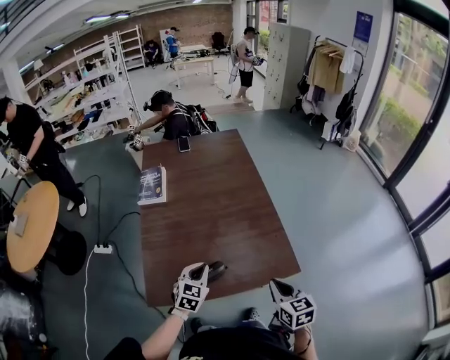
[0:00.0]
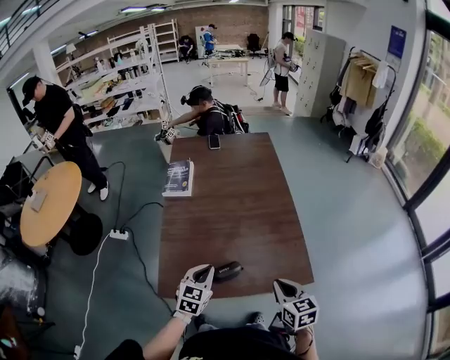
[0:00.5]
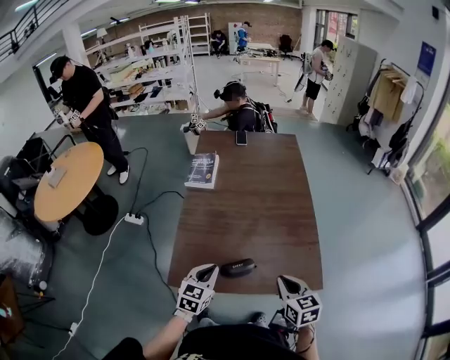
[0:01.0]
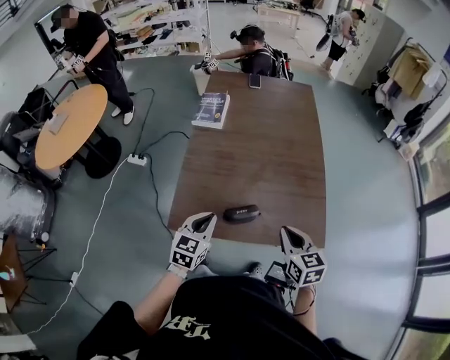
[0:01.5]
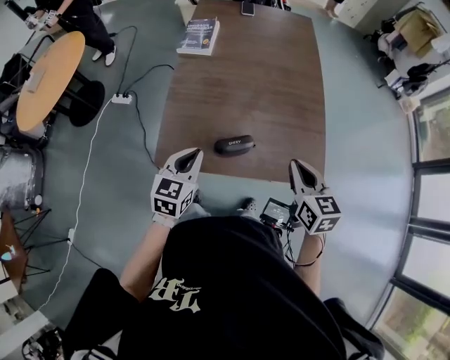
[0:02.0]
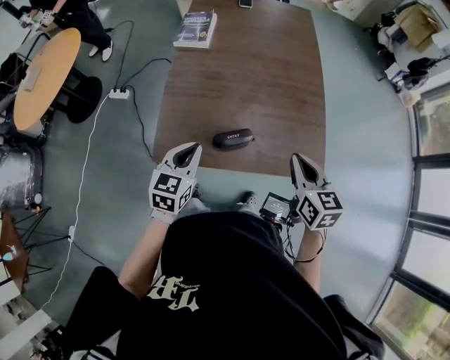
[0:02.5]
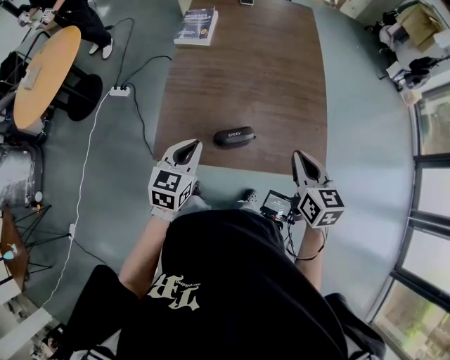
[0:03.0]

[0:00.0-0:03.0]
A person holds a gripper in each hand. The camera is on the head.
0:00.0 to 0:01.5: The right gripper is displaced to the left by approximately 10 cm. Meanwhile the left gripper moves to the left and backward, some 10 cm.
0:01.5 to 0:03.0: The grippers make only small movements.

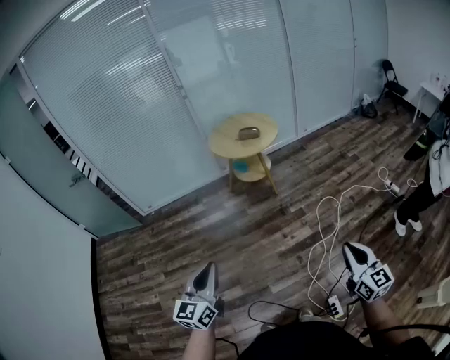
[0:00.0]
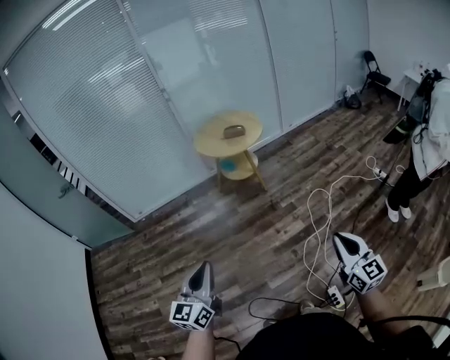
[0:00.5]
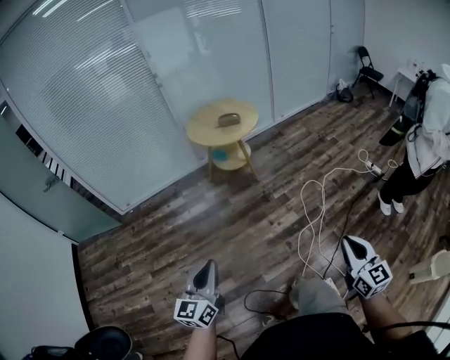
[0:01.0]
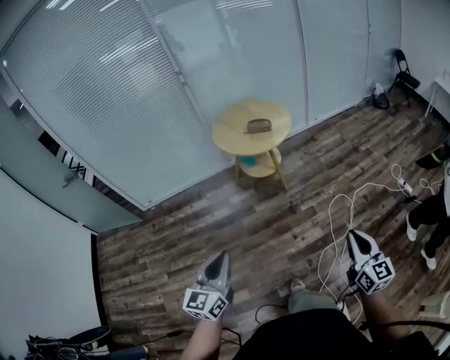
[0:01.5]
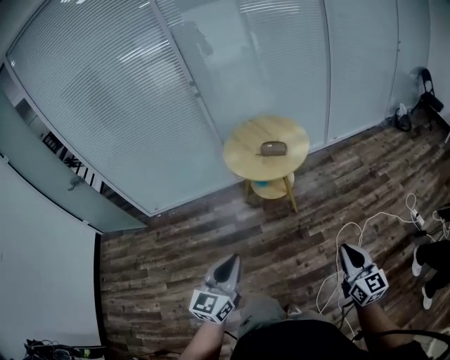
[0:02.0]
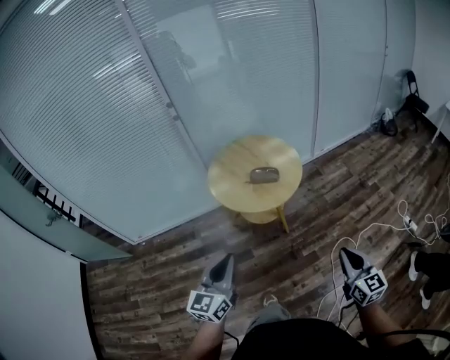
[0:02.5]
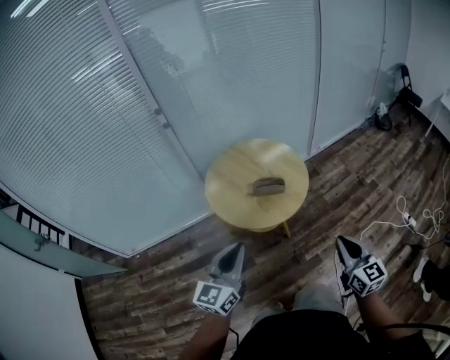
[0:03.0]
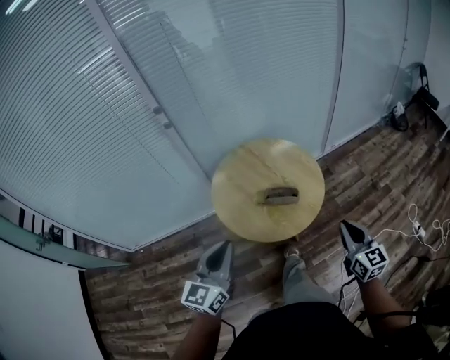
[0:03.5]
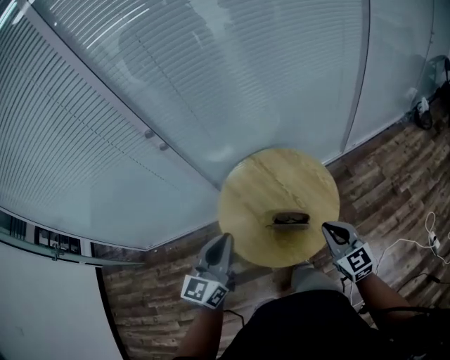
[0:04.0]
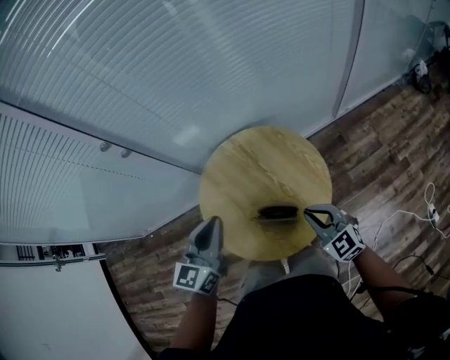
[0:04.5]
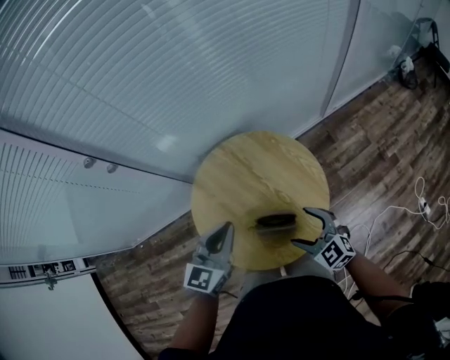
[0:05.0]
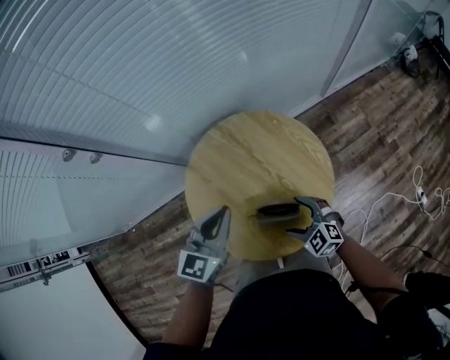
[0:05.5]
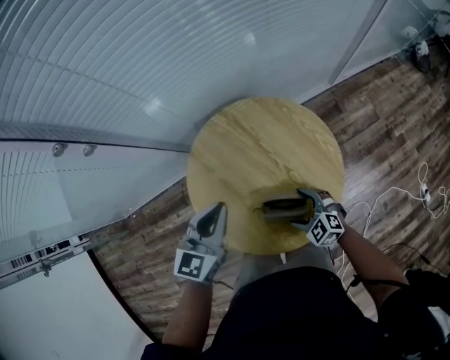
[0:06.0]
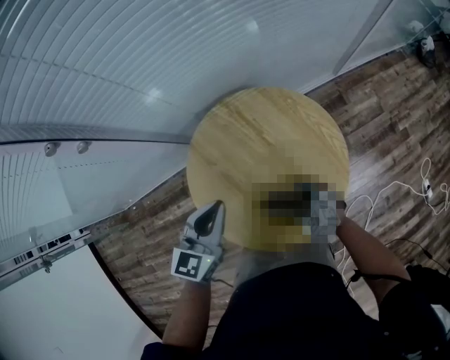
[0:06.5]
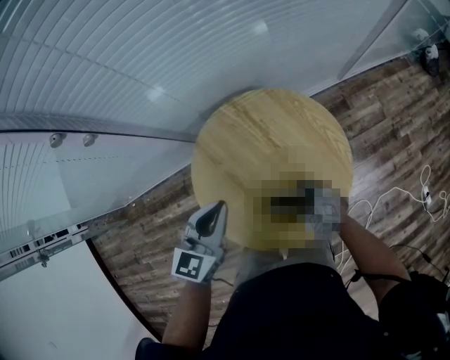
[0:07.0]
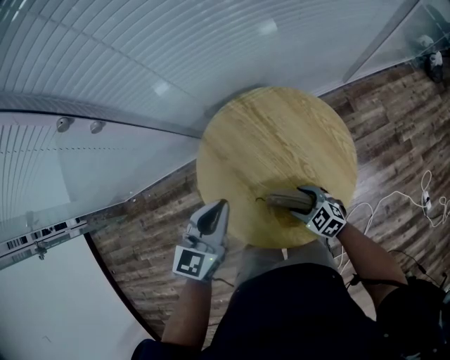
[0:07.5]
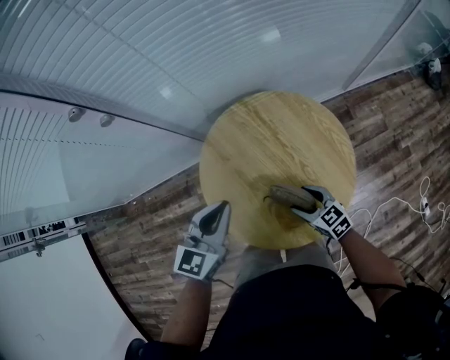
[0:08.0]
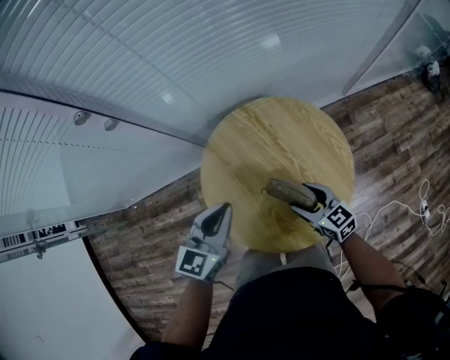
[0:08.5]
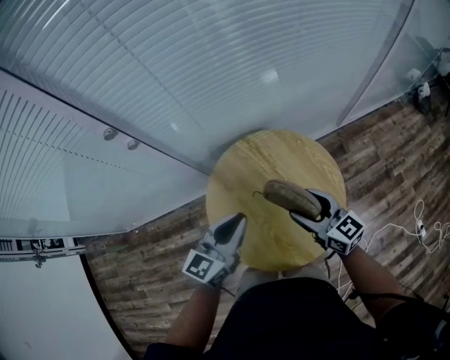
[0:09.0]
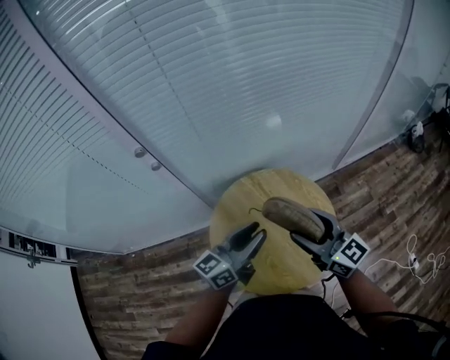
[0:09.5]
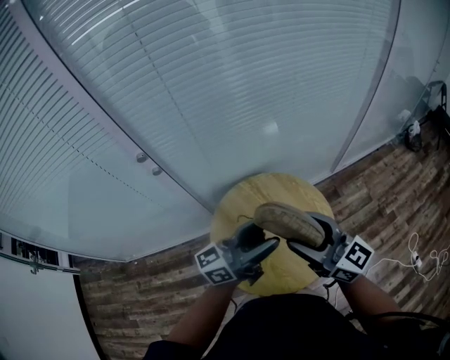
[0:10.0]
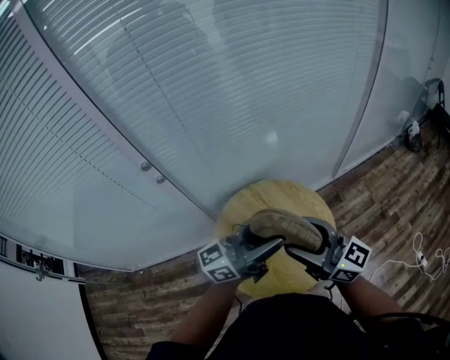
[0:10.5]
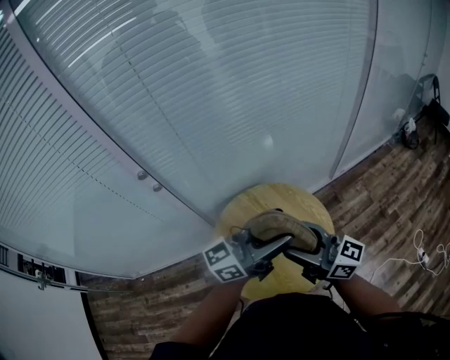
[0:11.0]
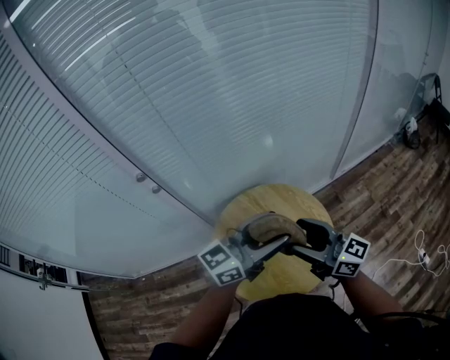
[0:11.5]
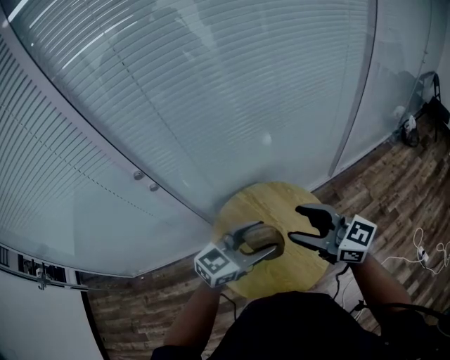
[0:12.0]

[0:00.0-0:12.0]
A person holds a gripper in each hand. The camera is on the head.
0:00.0 to 0:02.0: The two grippers go about 40 cm forward.
0:02.0 to 0:04.0: The two grippers travel together, forward, about 70 cm.
0:04.0 to 0:06.0: The right gripper heads downward, covering about 30 cm, tips its fingers downward by about 30 degrees, and opens up, while the left gripper goes about 25 cm forward and downward.
0:06.0 to 0:08.0: The left gripper shifts approximately 5 cm to the left. Meanwhile the right gripper changes its angle by some 30 degrees, and closes its fingers.
0:08.0 to 0:10.0: The left gripper goes approximately 20 cm upward and to the right, tilts its fingers some 40 degrees upward, and opens its fingers. The right gripper travels upward by some 40 cm, and tips its fingers upward by about 50 degrees.
0:10.0 to 0:12.0: The left gripper travels downward by approximately 5 cm, and angles its fingers downward, by roughly 30 degrees.

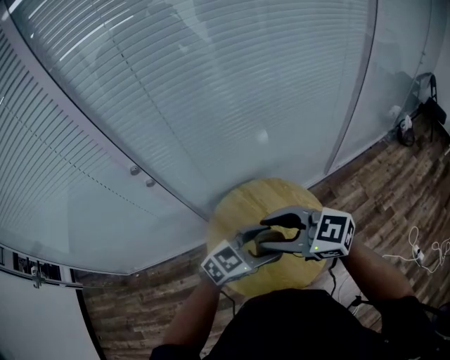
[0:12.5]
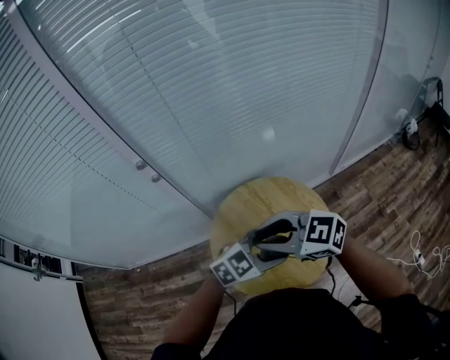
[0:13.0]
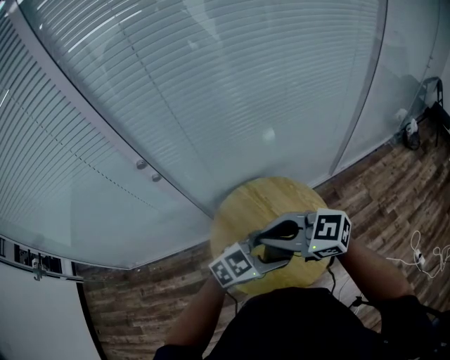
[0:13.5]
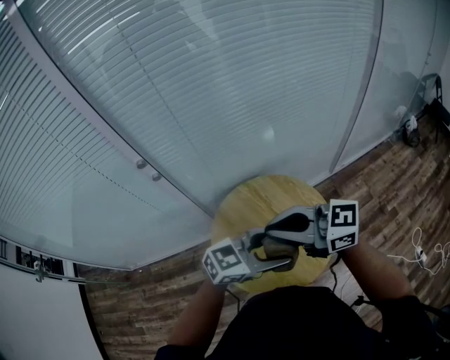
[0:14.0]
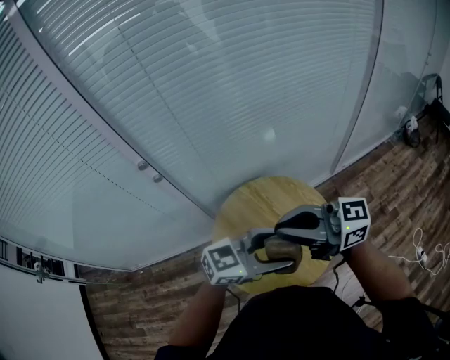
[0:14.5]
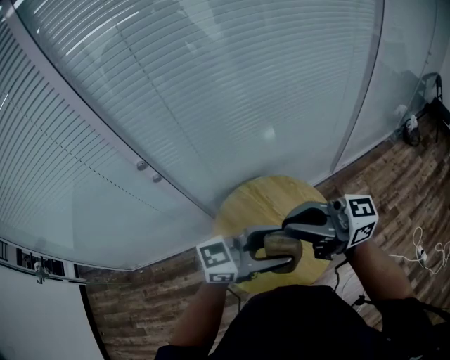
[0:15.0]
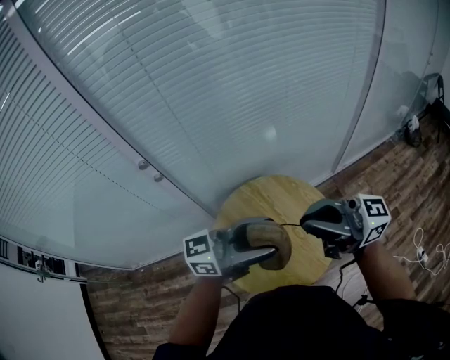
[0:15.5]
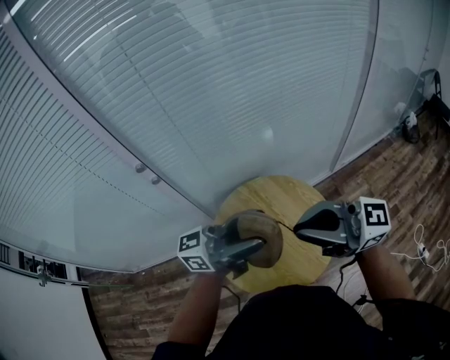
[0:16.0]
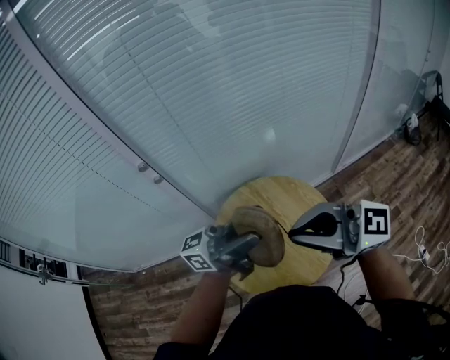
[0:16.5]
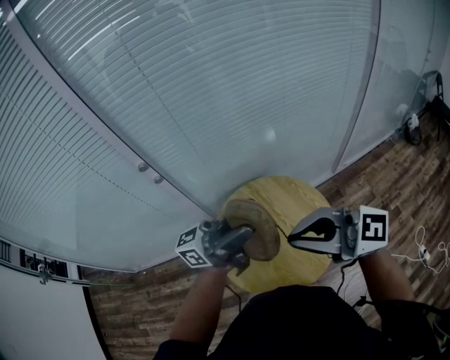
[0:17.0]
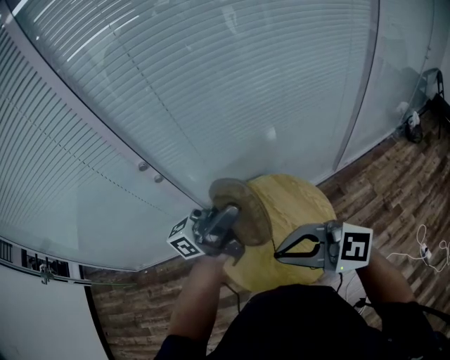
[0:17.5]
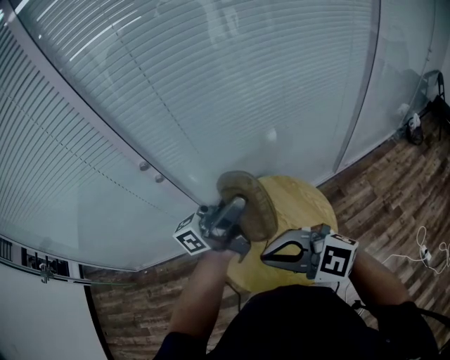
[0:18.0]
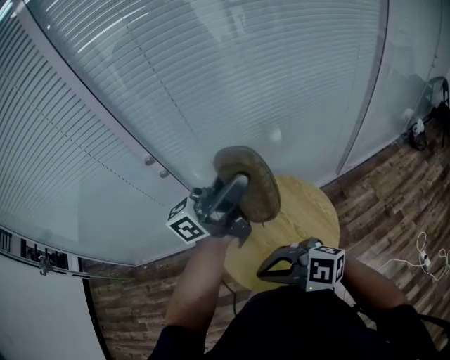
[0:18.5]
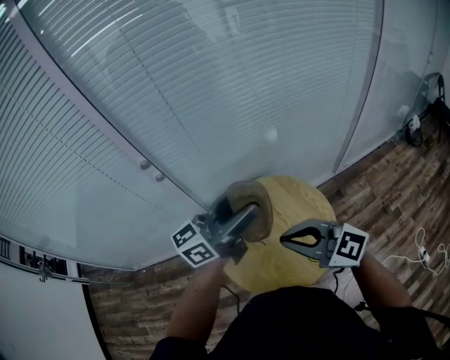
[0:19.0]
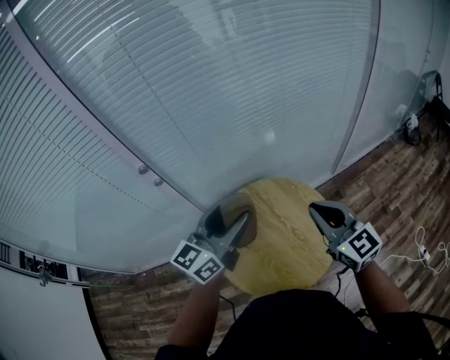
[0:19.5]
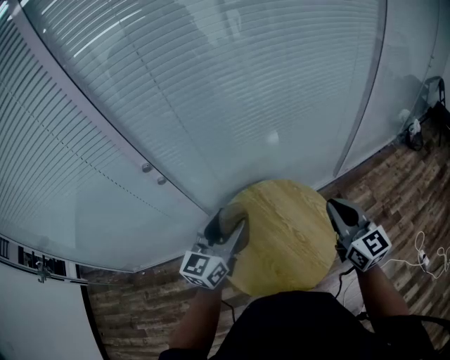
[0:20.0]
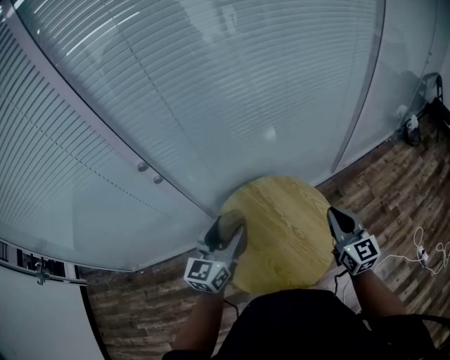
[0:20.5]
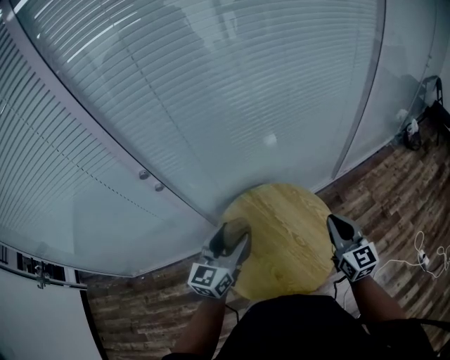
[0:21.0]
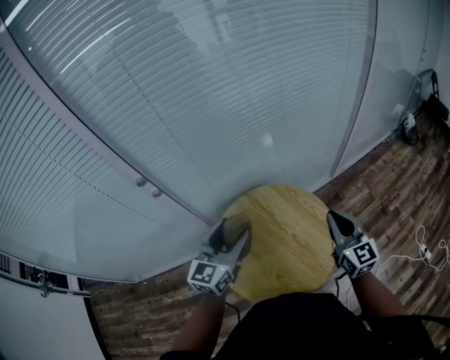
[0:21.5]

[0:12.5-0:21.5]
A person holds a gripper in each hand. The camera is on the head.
0:12.5 to 0:14.5: The right gripper moves about 5 cm, turns by roughly 30 degrees, and closes its fingers, while the left gripper is displaced upward by about 5 cm.
0:14.5 to 0:17.0: The left gripper heads upward, covering about 15 cm, and tilts its fingers about 50 degrees upward, while the right gripper ends up some 5 cm from where it was, and swivels about 20 degrees.
0:17.0 to 0:19.5: The right gripper moves approximately 15 cm, and swivels roughly 50 degrees. Meanwhile the left gripper moves downward, approximately 5 cm, and points its fingers some 30 degrees further downward.
0:19.5 to 0:21.5: The left gripper heads downward, covering about 10 cm, while the right gripper shifts some 10 cm to the right and downward, and rotates about 20 degrees.

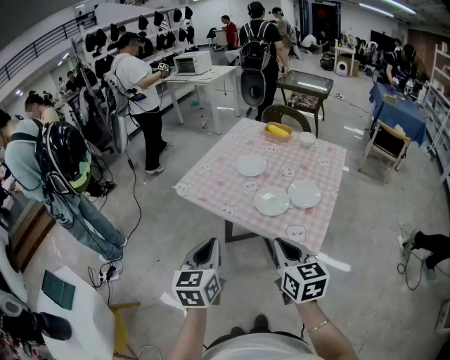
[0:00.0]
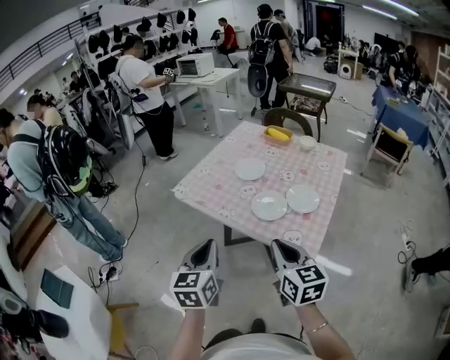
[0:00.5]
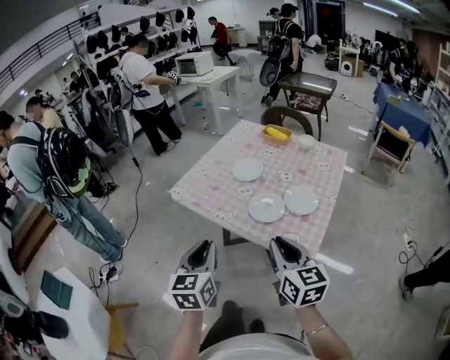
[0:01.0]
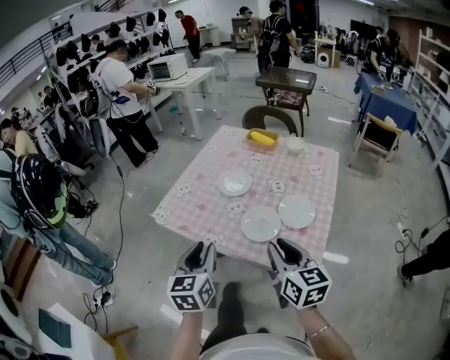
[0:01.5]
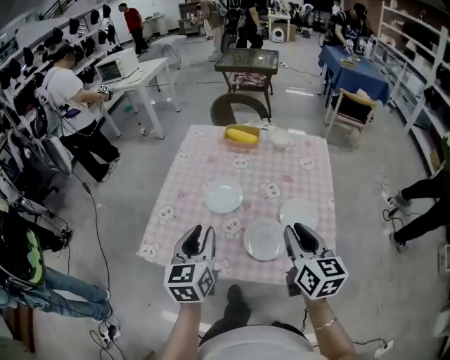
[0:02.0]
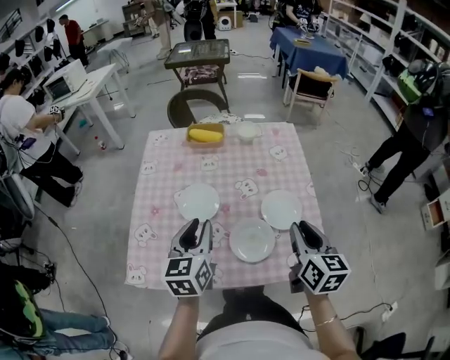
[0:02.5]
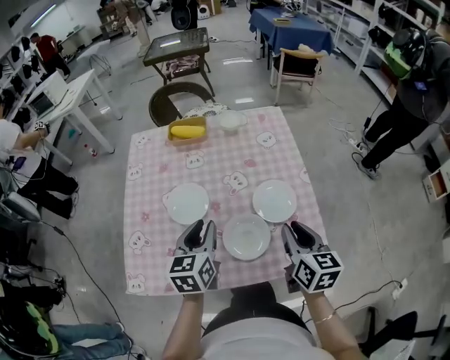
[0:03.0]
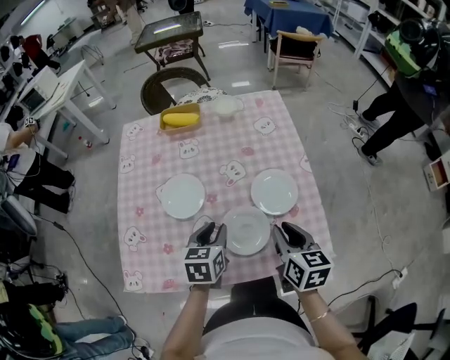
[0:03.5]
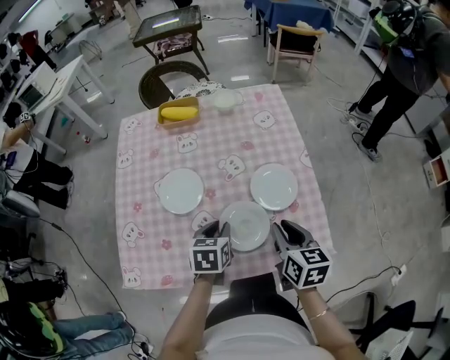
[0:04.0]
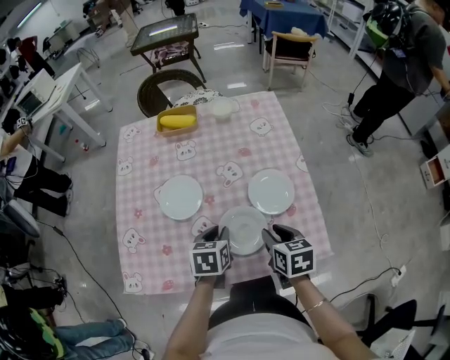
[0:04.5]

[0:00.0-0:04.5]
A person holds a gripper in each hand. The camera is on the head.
0:00.0 to 0:02.0: Both grippers travel together forward, roughly 35 cm. The left gripper opens, while the right gripper swivels approximately 30 degrees, and opens up.
0:02.0 to 0:04.5: The left gripper shifts roughly 25 cm downward, to the right and forward, and points its fingers about 30 degrees further downward, while the right gripper is displaced downward by roughly 20 cm, and tilts its fingers some 30 degrees downward.
